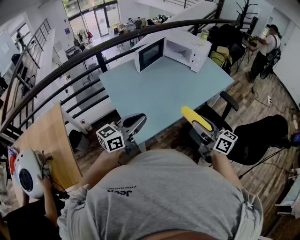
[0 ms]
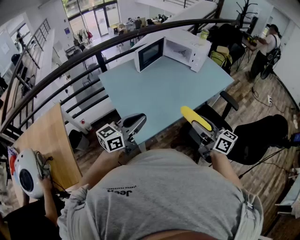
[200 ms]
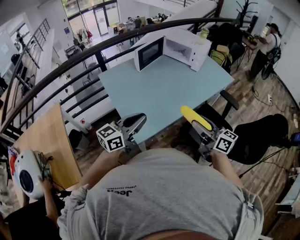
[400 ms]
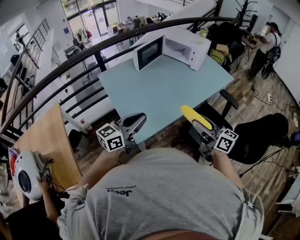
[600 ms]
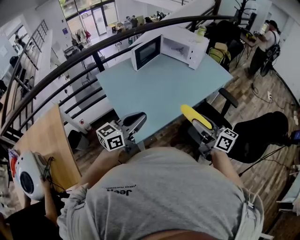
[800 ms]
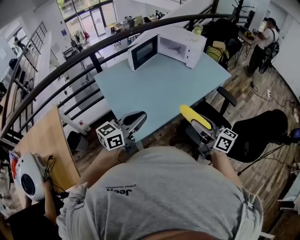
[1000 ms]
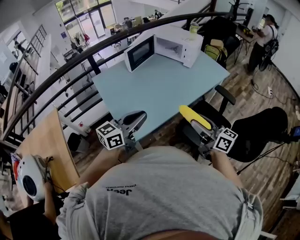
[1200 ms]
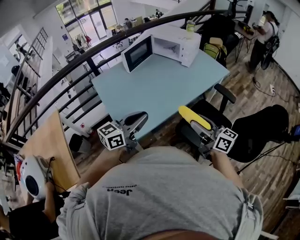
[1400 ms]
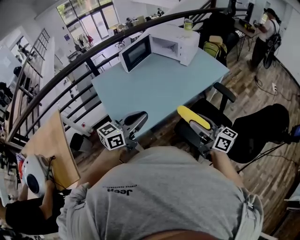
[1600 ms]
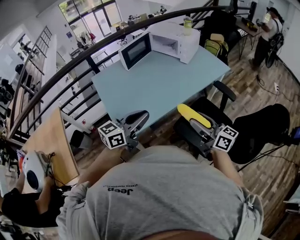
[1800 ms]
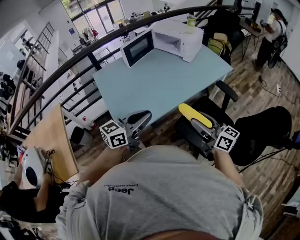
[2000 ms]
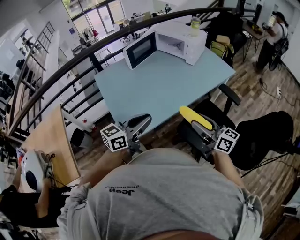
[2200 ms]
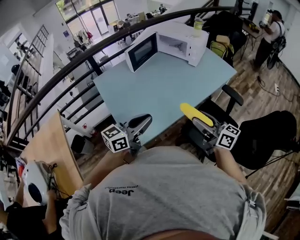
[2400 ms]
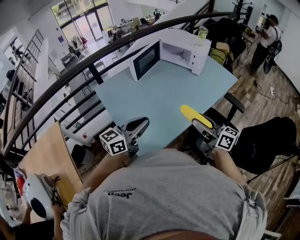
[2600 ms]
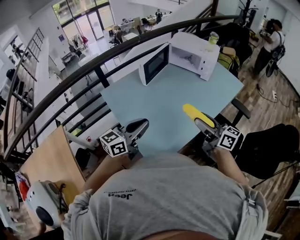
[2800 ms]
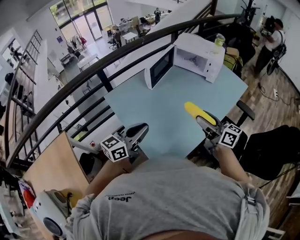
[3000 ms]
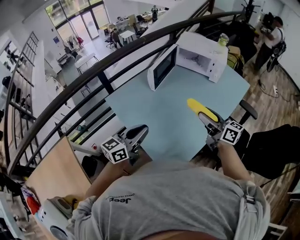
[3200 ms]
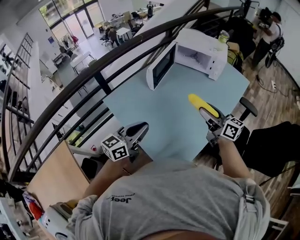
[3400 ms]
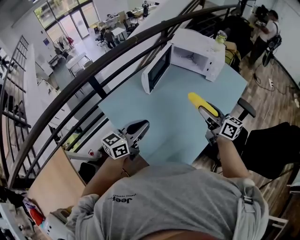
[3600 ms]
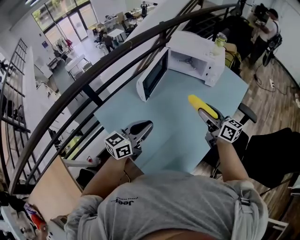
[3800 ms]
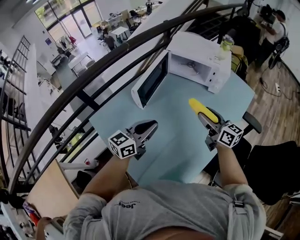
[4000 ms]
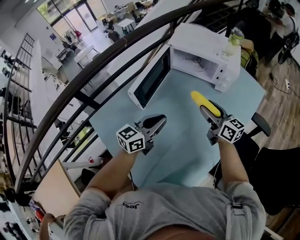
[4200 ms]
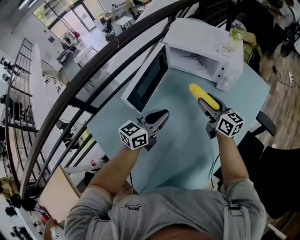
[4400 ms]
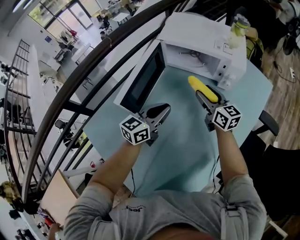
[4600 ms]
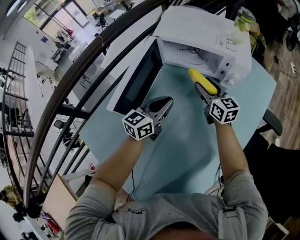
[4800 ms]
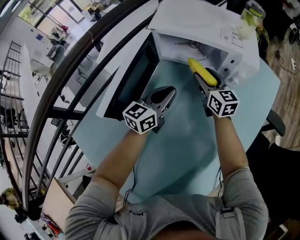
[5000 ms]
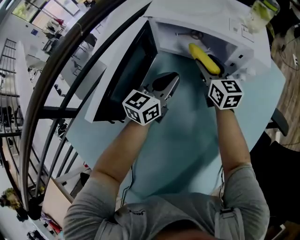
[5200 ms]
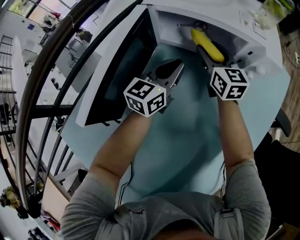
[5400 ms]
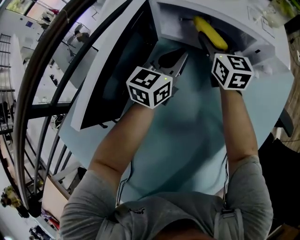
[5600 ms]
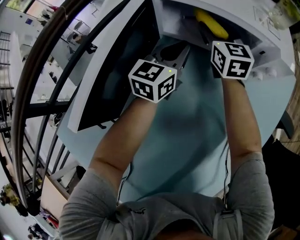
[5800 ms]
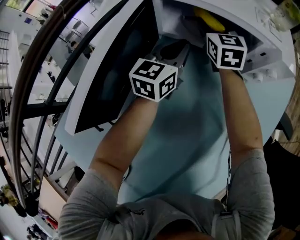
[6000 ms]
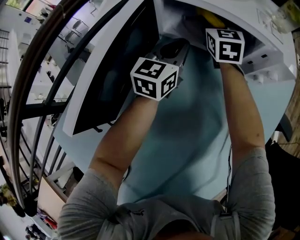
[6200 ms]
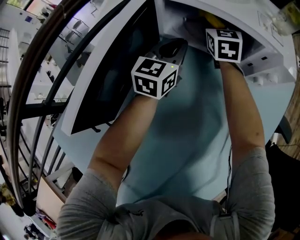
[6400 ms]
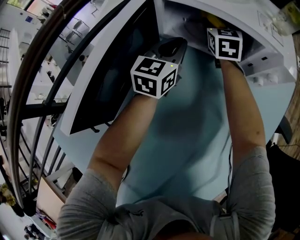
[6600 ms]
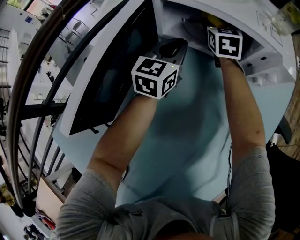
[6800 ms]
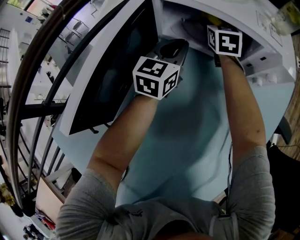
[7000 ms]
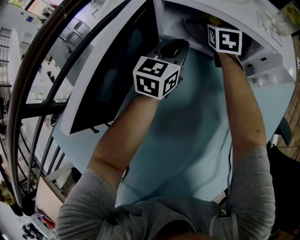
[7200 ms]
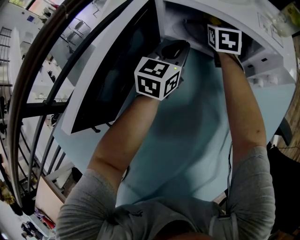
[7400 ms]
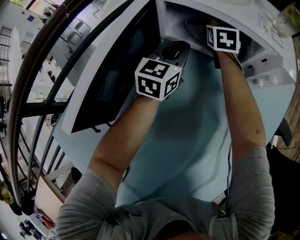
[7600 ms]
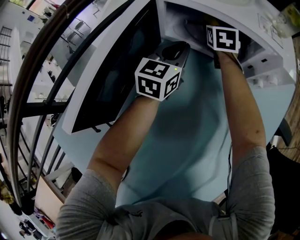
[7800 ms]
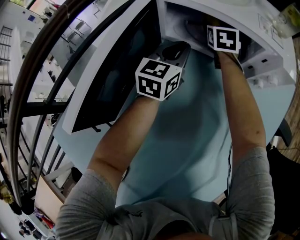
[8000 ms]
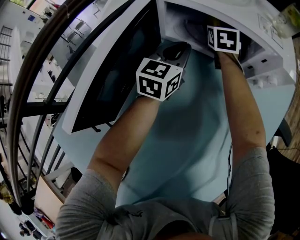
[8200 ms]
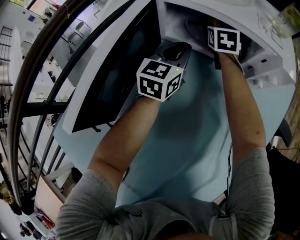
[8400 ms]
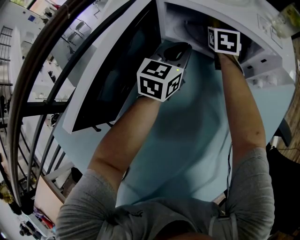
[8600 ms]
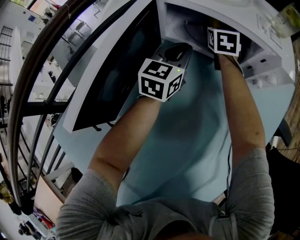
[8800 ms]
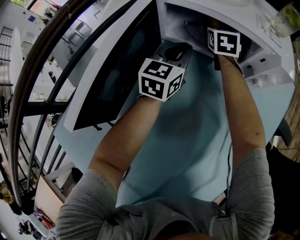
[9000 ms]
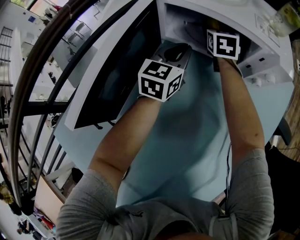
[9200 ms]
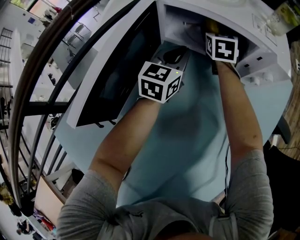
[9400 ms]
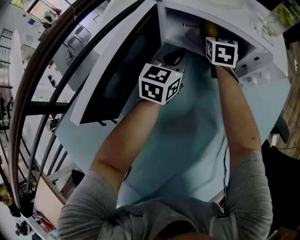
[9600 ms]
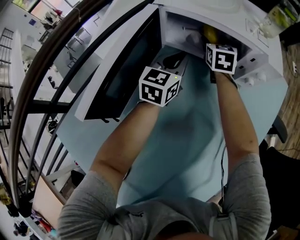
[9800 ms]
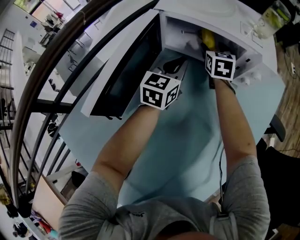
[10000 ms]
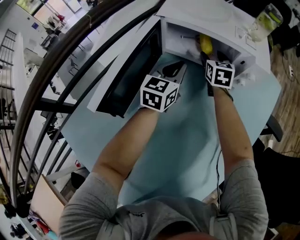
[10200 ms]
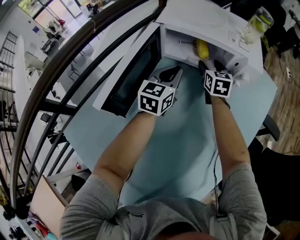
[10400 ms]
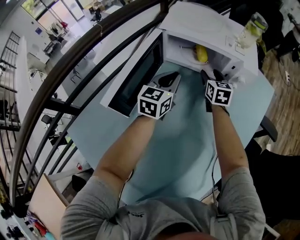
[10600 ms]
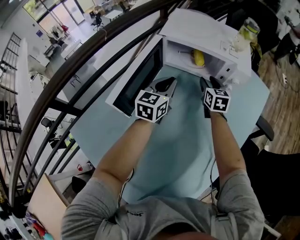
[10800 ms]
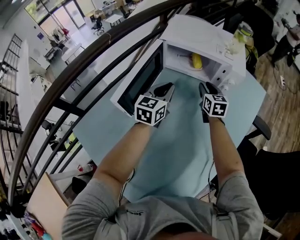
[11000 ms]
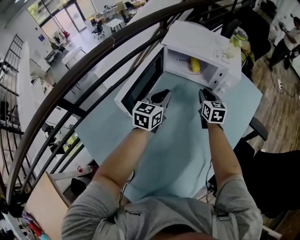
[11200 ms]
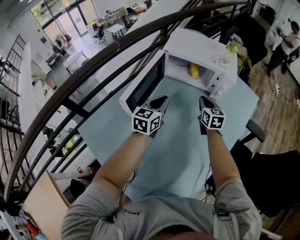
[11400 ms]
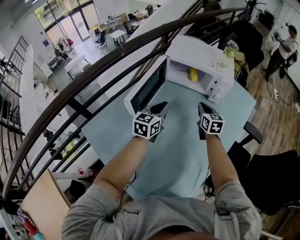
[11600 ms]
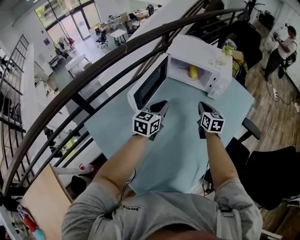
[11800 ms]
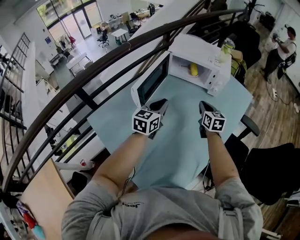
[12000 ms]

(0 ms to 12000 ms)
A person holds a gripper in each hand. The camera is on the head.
0 ms - 1600 ms: Both grippers move to the right, some 15 cm.
1600 ms - 3000 ms: The grippers both shift to the left and forward by about 30 cm.
3000 ms - 4400 ms: The left gripper travels forward by some 35 cm; the right gripper moves forward and downward, approximately 40 cm.
4400 ms - 6000 ms: The right gripper travels forward by about 30 cm, and rotates some 40 degrees. The left gripper moves forward and downward, some 30 cm.
6000 ms - 7600 ms: The right gripper is displaced forward and downward by some 5 cm.
7600 ms - 9000 ms: The two grippers keep their place.
9000 ms - 10400 ms: The left gripper shifts roughly 10 cm backward and upward; the right gripper shifts approximately 10 cm backward.
10400 ms - 12000 ms: The two grippers go some 25 cm backward and upward. The right gripper closes.

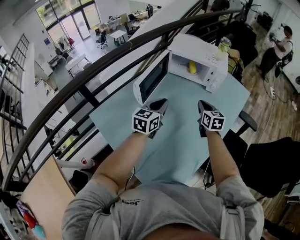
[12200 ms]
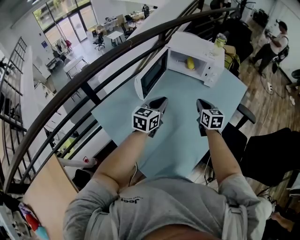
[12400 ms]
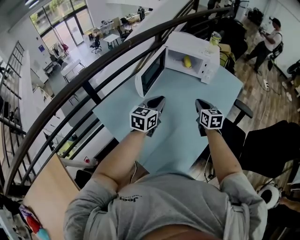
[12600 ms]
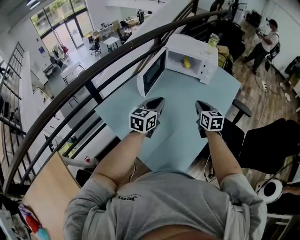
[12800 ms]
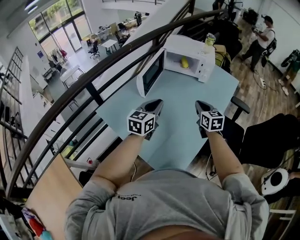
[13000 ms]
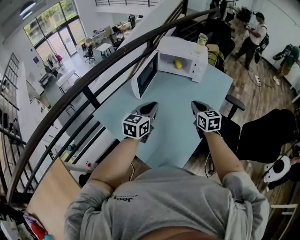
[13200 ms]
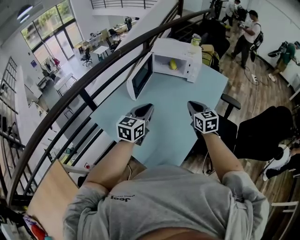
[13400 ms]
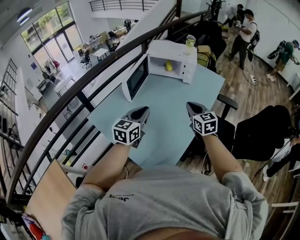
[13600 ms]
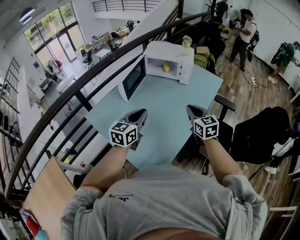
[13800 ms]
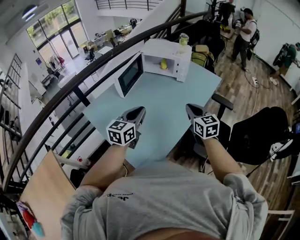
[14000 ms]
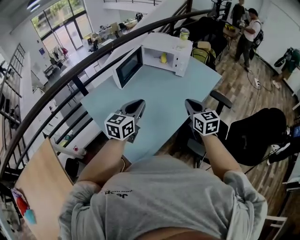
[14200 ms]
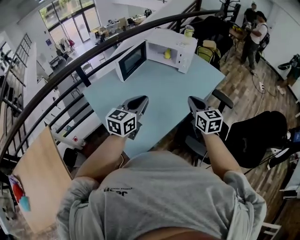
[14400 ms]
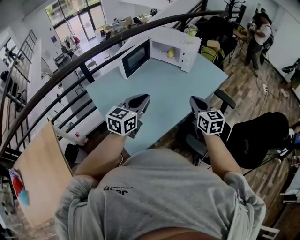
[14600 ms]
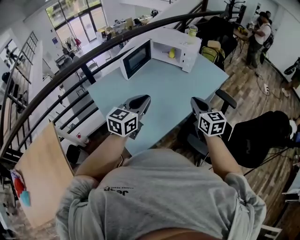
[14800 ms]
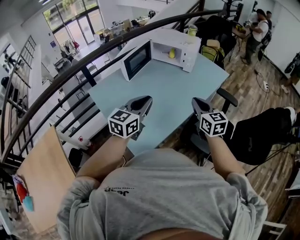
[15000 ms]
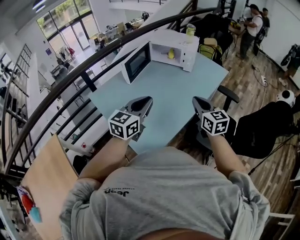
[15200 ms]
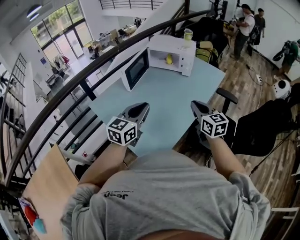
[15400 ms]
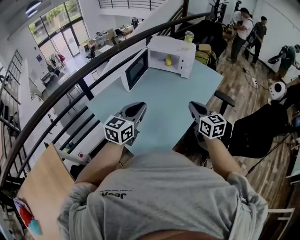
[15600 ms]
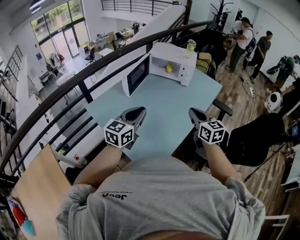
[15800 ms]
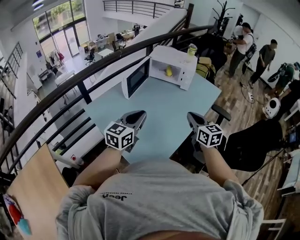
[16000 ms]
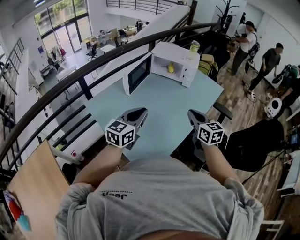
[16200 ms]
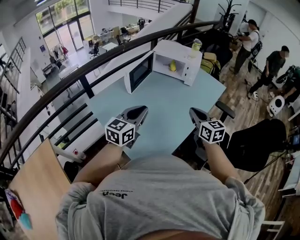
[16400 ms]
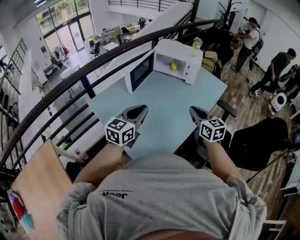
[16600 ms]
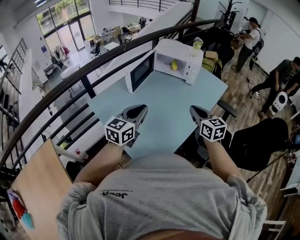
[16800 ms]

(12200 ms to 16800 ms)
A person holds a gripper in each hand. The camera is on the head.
12200 ms - 13800 ms: The two grippers go some 25 cm backward and upward.
13800 ms - 15200 ms: The grippers both shift backward and to the right by some 10 cm.
15200 ms - 16800 ms: The grippers both shift to the left by approximately 10 cm.

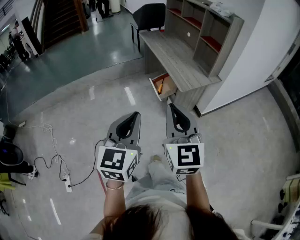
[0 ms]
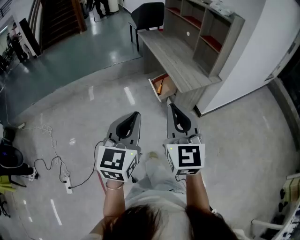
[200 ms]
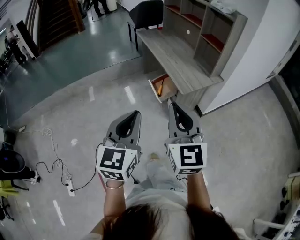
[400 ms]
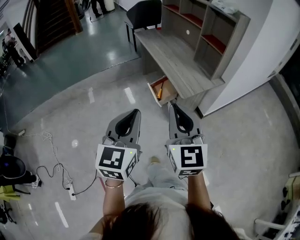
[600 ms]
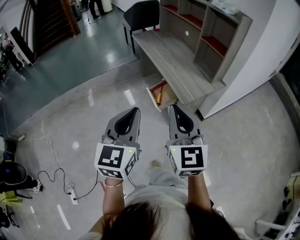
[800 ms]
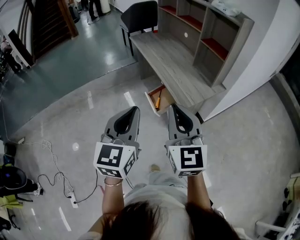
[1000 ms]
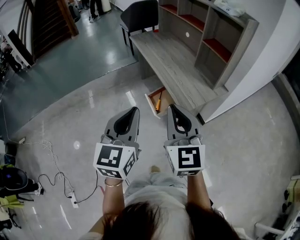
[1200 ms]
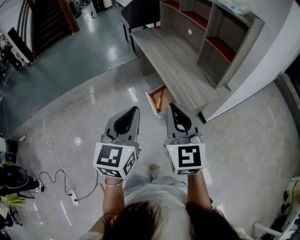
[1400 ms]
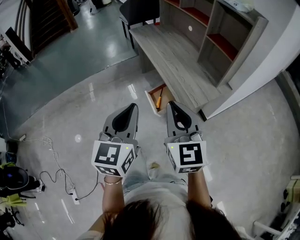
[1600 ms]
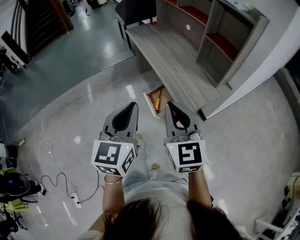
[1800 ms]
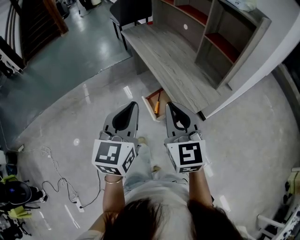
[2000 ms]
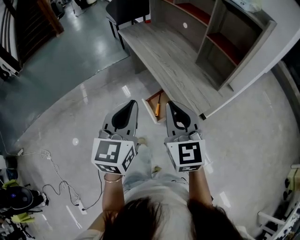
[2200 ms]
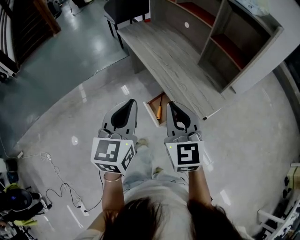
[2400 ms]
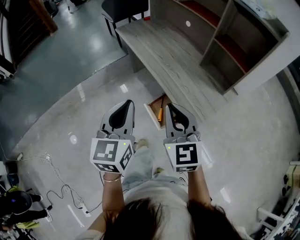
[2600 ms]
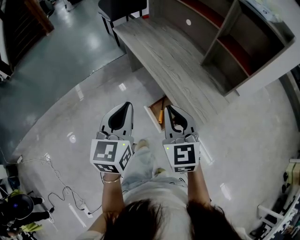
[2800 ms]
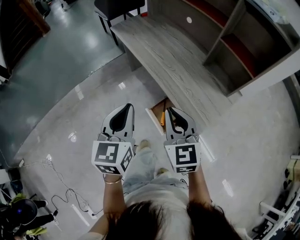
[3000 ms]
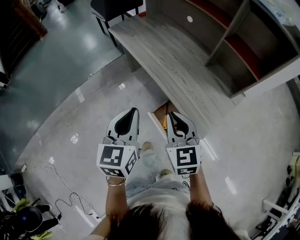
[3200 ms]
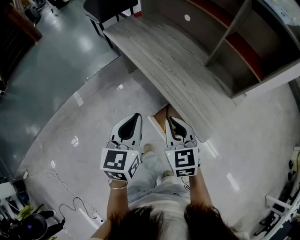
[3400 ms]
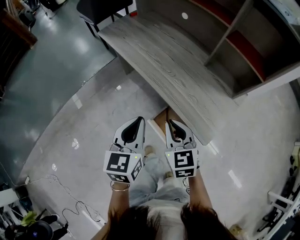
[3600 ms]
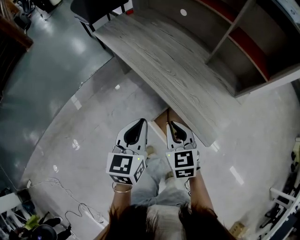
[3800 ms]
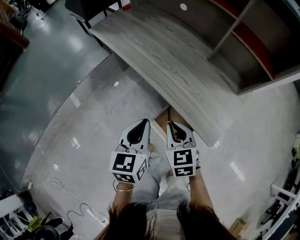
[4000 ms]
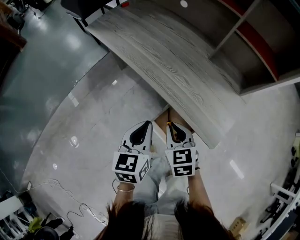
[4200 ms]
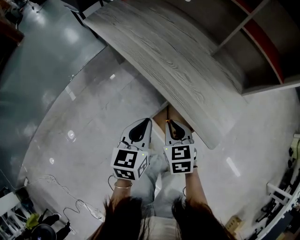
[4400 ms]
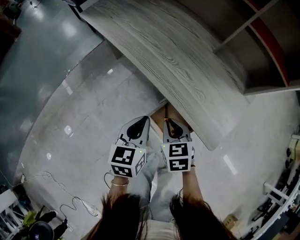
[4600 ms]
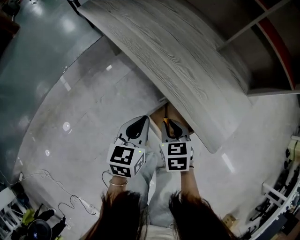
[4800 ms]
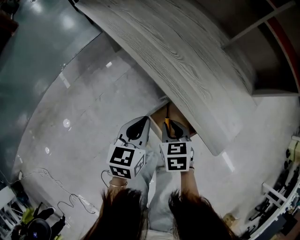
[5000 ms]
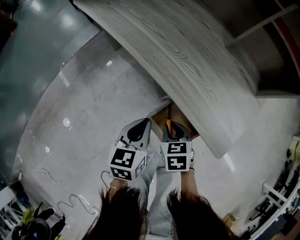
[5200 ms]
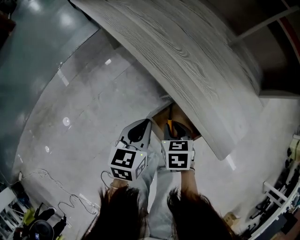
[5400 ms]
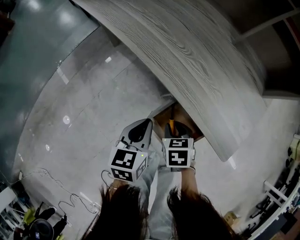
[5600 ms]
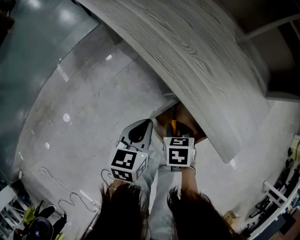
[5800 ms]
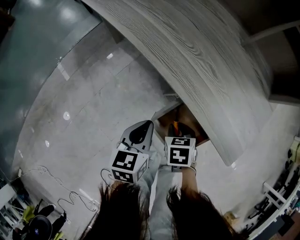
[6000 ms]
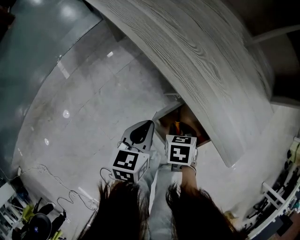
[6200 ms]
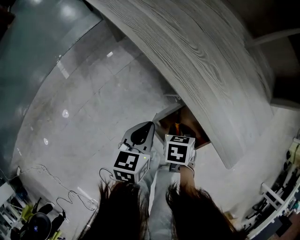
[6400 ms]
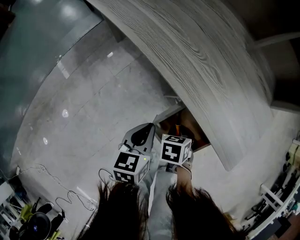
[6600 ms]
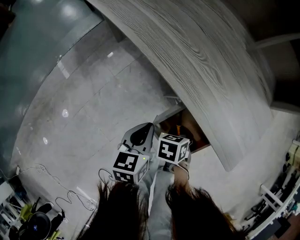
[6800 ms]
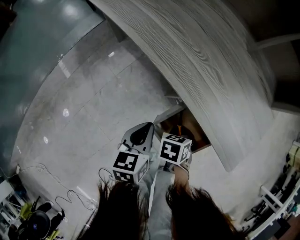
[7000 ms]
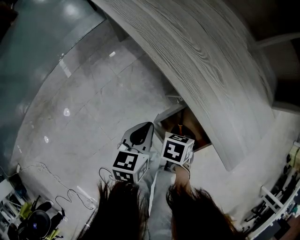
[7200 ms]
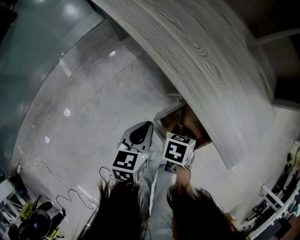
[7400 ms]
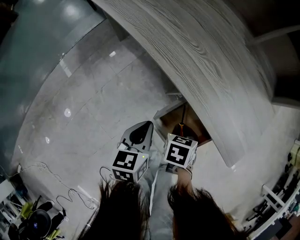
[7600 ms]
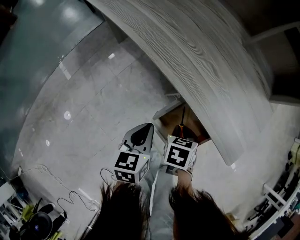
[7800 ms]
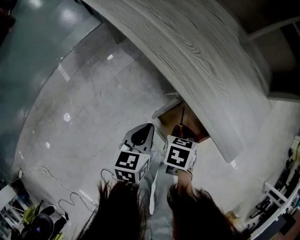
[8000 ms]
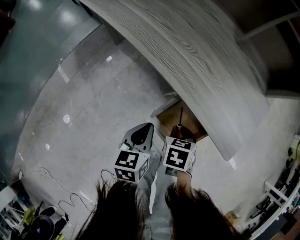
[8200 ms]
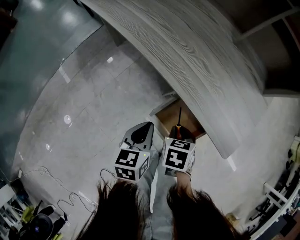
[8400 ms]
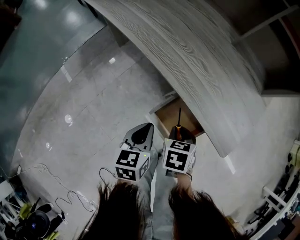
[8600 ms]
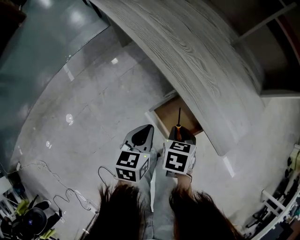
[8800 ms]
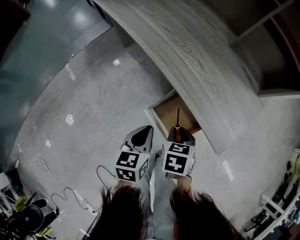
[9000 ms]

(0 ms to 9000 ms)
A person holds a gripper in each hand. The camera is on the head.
0 ms - 1600 ms: Both grippers travel together forward, roughly 30 cm.
1600 ms - 3000 ms: The right gripper travels forward and downward by approximately 25 cm. Meanwhile the left gripper travels forward by about 25 cm.
3000 ms - 4400 ms: The right gripper goes roughly 25 cm downward, and changes its angle by roughly 30 degrees. Meanwhile the left gripper shifts roughly 20 cm downward and forward, and changes its angle by about 20 degrees.
4400 ms - 6000 ms: Both grippers travel together downward, some 20 cm. The right gripper turns by approximately 30 degrees, and opens its fingers.
6000 ms - 7600 ms: There are only small adjustments of the grippers.
7600 ms - 9000 ms: The right gripper is displaced upward by some 10 cm; the left gripper shifts by about 10 cm.
